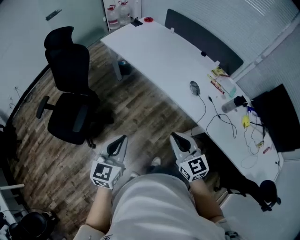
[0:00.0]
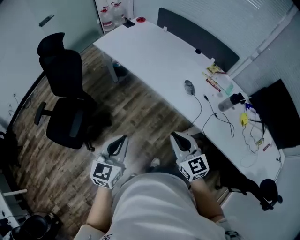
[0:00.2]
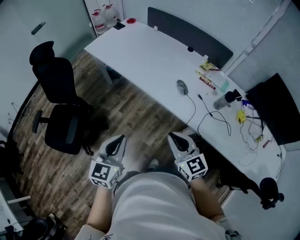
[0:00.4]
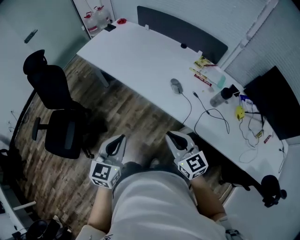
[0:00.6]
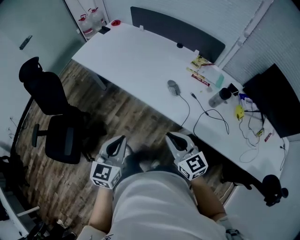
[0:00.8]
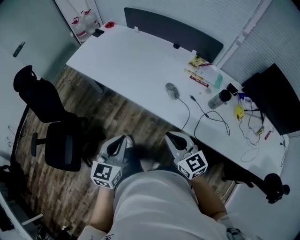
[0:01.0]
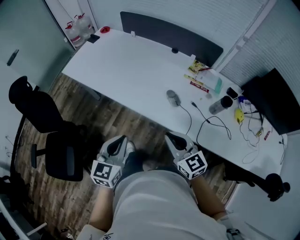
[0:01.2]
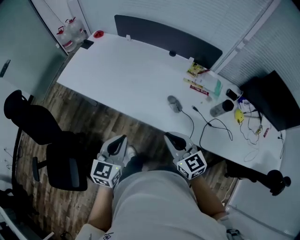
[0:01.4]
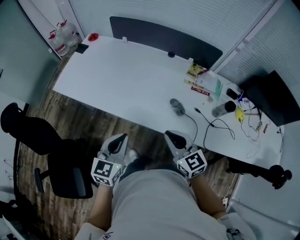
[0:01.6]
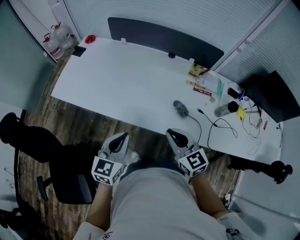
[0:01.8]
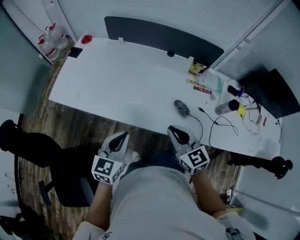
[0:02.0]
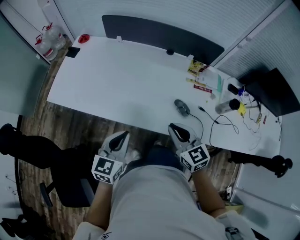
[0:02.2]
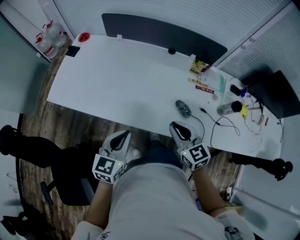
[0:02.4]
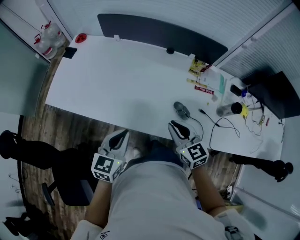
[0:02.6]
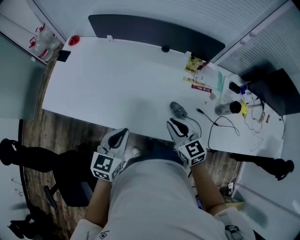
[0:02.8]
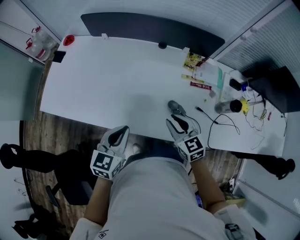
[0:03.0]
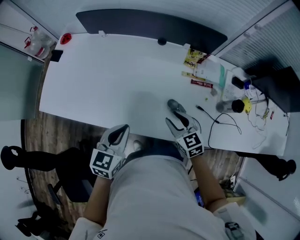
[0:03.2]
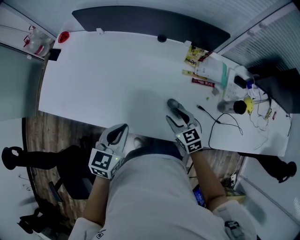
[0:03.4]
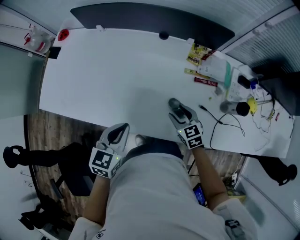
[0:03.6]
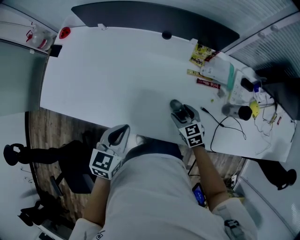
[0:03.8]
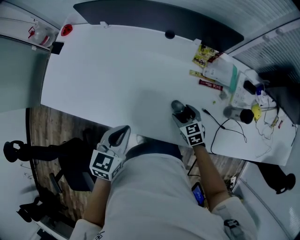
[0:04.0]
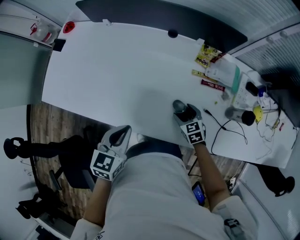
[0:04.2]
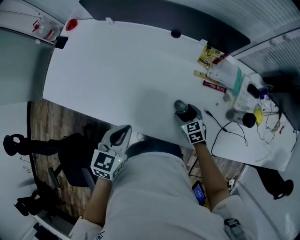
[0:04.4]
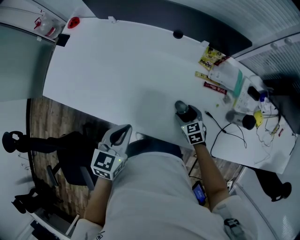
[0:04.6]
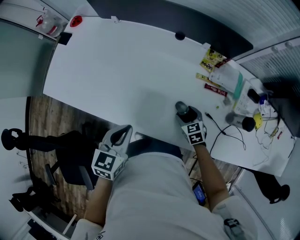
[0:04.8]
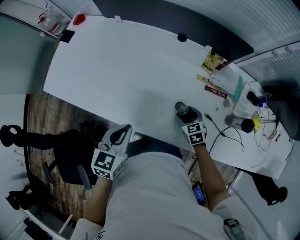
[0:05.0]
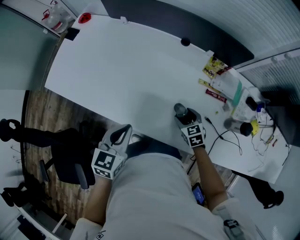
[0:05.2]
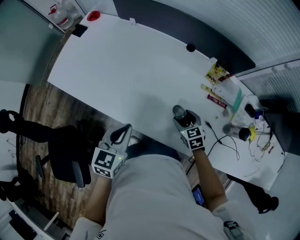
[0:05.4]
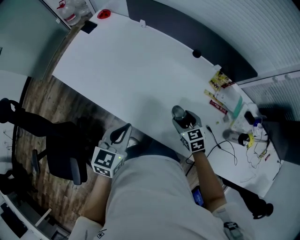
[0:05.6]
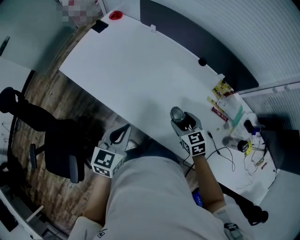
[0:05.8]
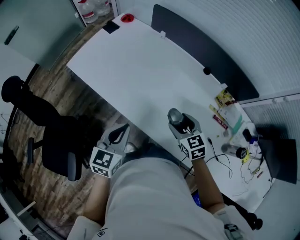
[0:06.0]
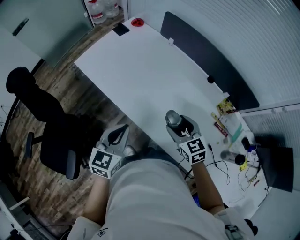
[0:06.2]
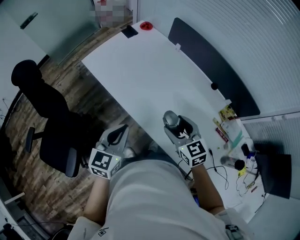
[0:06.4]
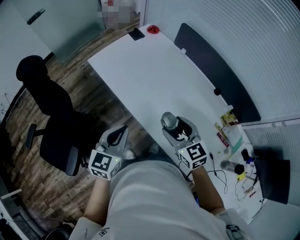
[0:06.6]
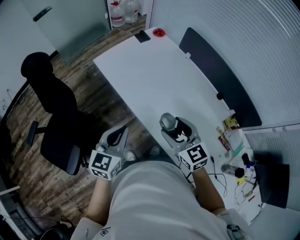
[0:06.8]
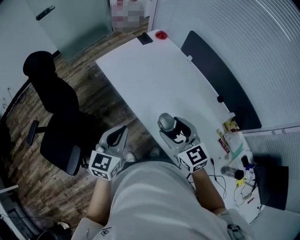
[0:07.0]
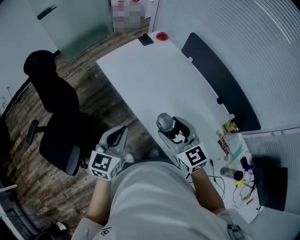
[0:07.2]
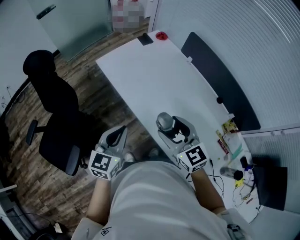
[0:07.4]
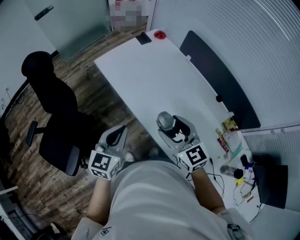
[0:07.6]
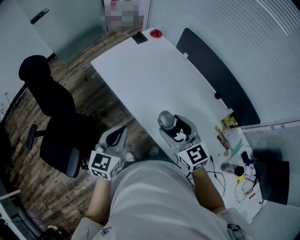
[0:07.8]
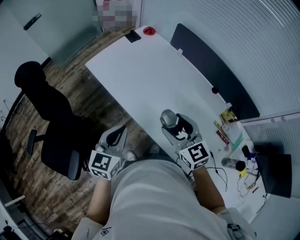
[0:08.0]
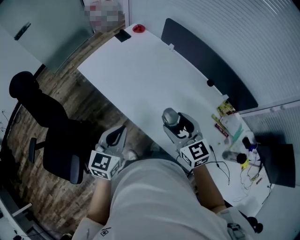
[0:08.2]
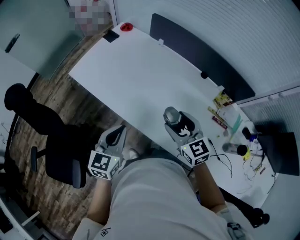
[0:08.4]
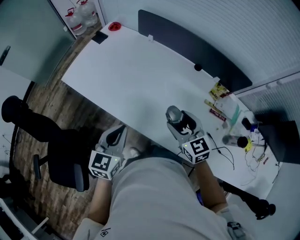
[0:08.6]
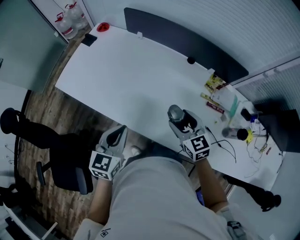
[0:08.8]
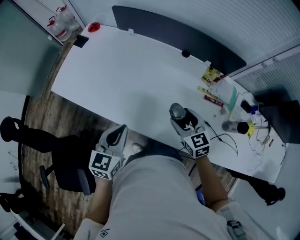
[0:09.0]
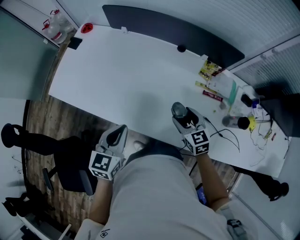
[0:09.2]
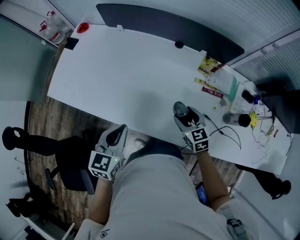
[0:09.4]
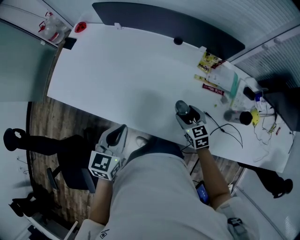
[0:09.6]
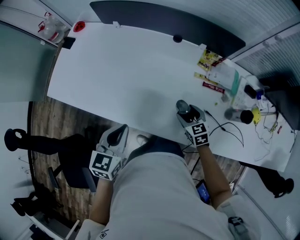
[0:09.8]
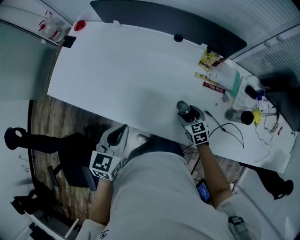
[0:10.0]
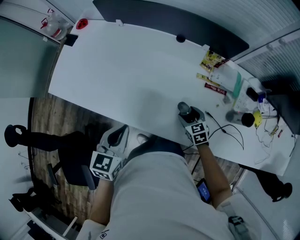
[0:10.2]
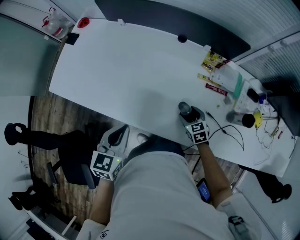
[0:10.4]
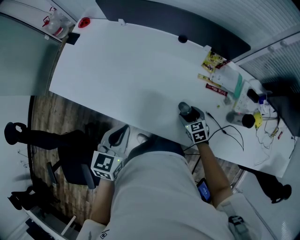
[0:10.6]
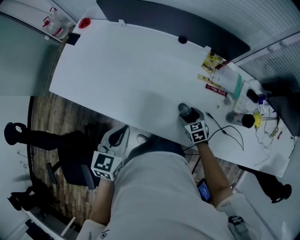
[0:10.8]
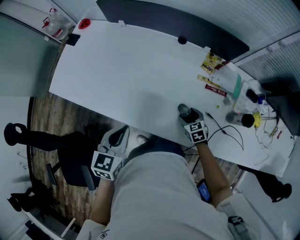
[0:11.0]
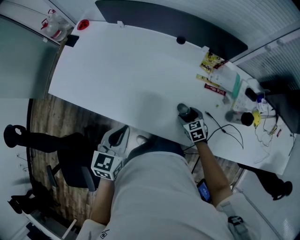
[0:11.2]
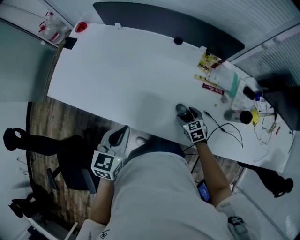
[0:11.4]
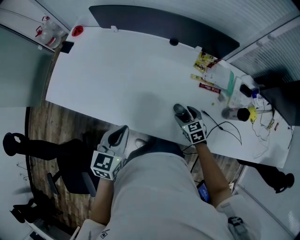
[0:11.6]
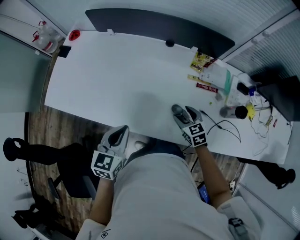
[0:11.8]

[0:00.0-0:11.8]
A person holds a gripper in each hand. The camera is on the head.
0:00.0 to 0:01.4: The grippers both shift forward by roughly 25 cm. The left gripper swivels approximately 20 degrees.
0:01.4 to 0:03.0: The left gripper shifts some 20 cm forward; the right gripper heads forward and downward, covering some 20 cm.
0:03.0 to 0:04.4: The left gripper ends up some 5 cm from where it was, while the right gripper shifts about 20 cm downward, turns by about 20 degrees, and opens its fingers.
0:04.4 to 0:06.0: The left gripper moves to the left and upward, some 15 cm, and rotates approximately 30 degrees, while the right gripper is displaced upward and to the left by some 25 cm, and changes its angle by some 20 degrees.
0:06.0 to 0:07.4: The left gripper goes approximately 15 cm to the left. Meanwhile the right gripper is displaced to the left and upward by roughly 25 cm, and rotates approximately 30 degrees.
0:07.4 to 0:08.8: The right gripper changes place by approximately 25 cm, and swivels approximately 30 degrees; the left gripper shifts by approximately 15 cm, and swivels about 30 degrees.
0:08.8 to 0:10.4: The left gripper moves to the right, about 5 cm. The right gripper goes some 25 cm downward and to the right, and turns by roughly 20 degrees.
0:10.4 to 0:11.8: The right gripper is displaced upward by approximately 5 cm.

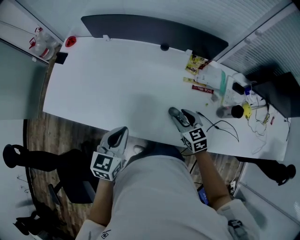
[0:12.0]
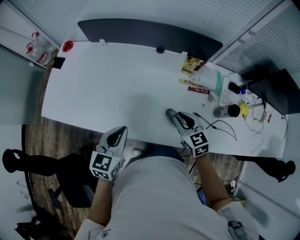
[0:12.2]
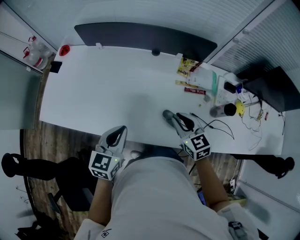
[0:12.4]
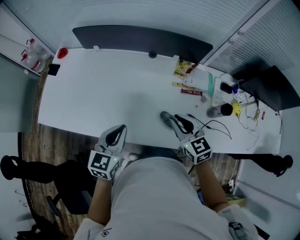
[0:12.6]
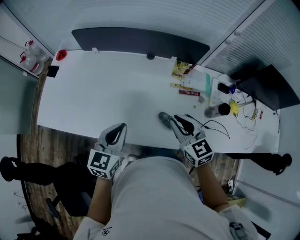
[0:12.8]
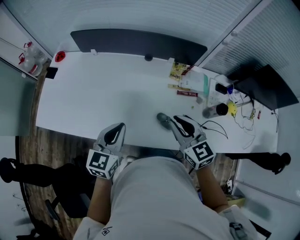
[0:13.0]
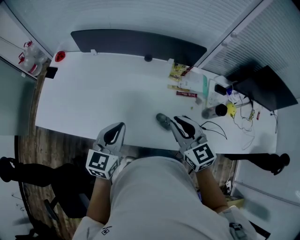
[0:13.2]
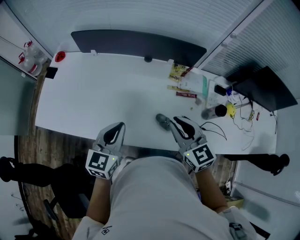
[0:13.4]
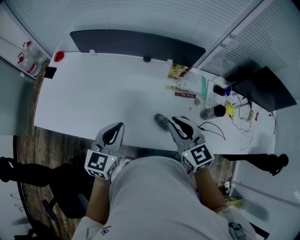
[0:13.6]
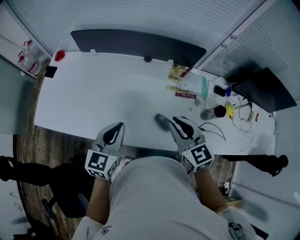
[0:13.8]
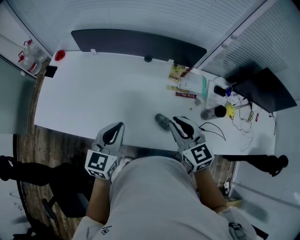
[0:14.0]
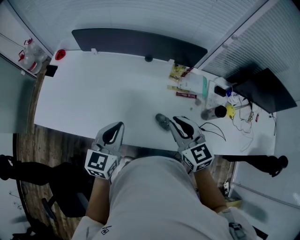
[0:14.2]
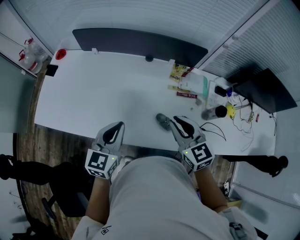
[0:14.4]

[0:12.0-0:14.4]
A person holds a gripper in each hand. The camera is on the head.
0:12.0 to 0:13.2: The right gripper is displaced upward by about 20 cm, and closes up; the left gripper travels upward by some 5 cm.
0:13.2 to 0:14.4: The two grippers keep their place.

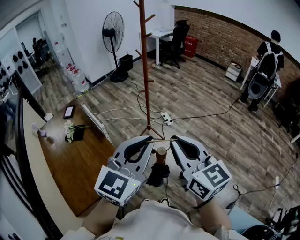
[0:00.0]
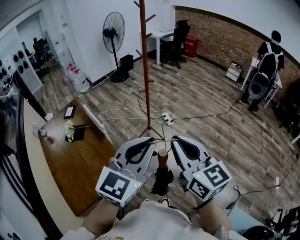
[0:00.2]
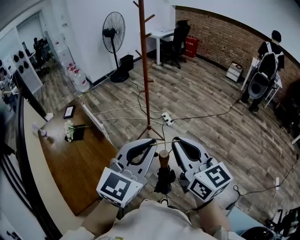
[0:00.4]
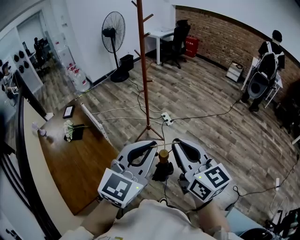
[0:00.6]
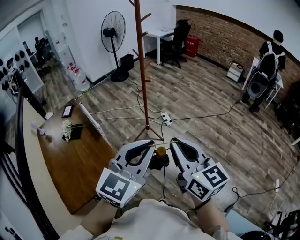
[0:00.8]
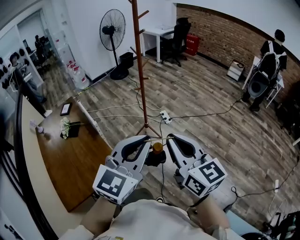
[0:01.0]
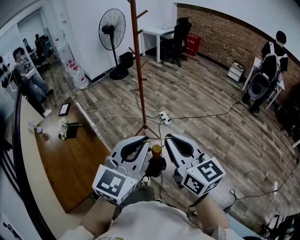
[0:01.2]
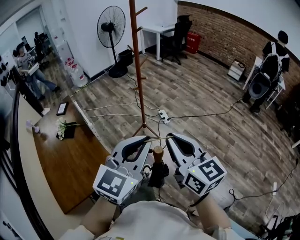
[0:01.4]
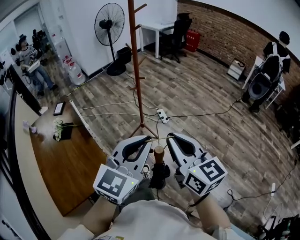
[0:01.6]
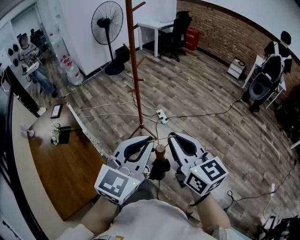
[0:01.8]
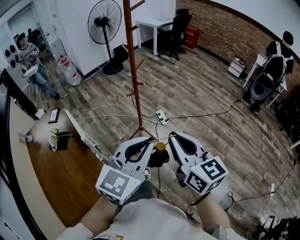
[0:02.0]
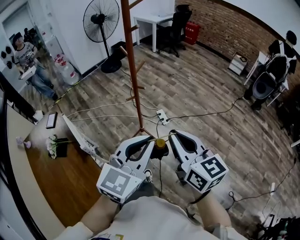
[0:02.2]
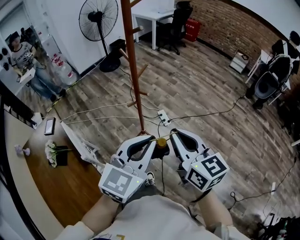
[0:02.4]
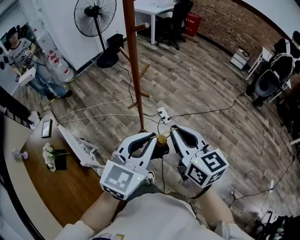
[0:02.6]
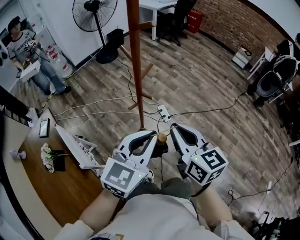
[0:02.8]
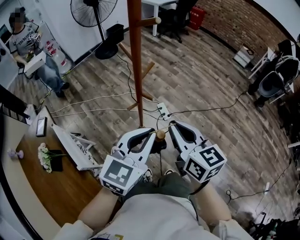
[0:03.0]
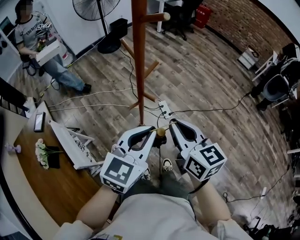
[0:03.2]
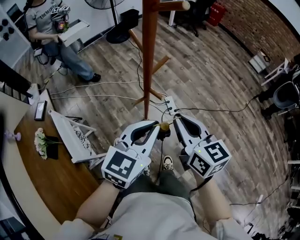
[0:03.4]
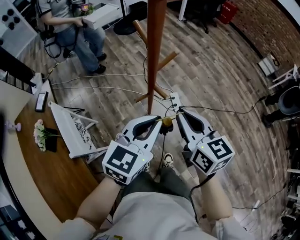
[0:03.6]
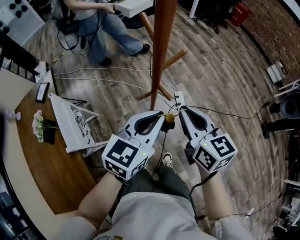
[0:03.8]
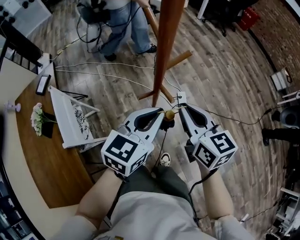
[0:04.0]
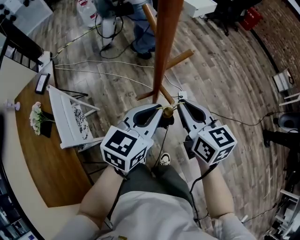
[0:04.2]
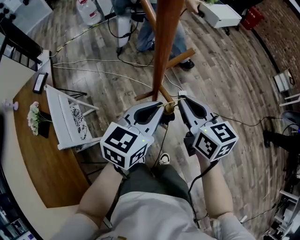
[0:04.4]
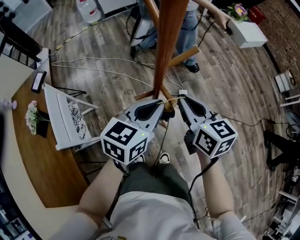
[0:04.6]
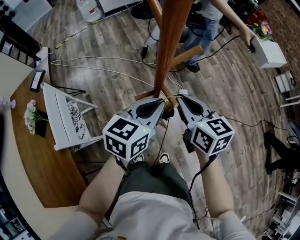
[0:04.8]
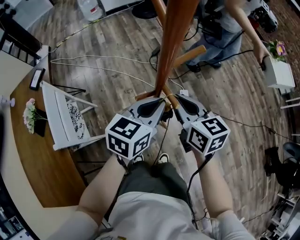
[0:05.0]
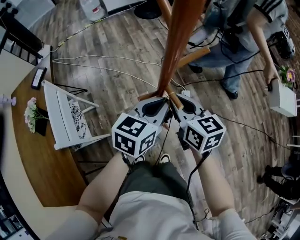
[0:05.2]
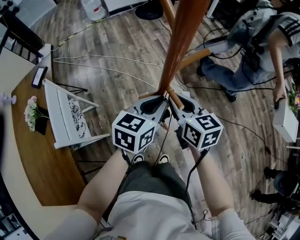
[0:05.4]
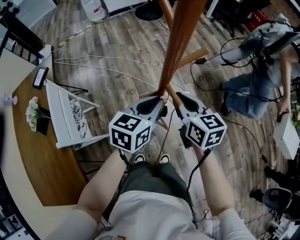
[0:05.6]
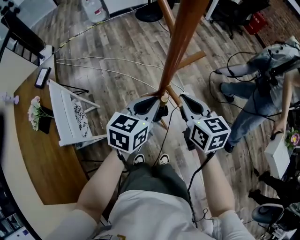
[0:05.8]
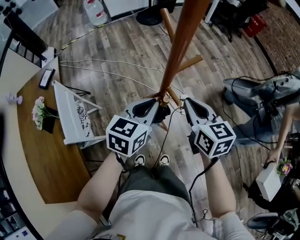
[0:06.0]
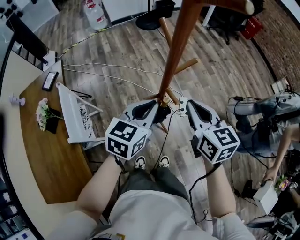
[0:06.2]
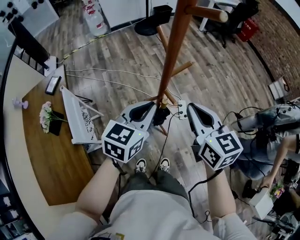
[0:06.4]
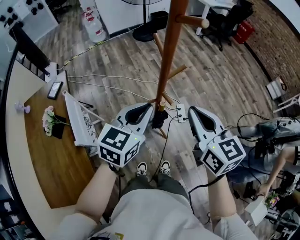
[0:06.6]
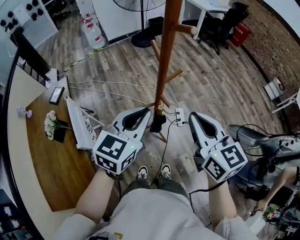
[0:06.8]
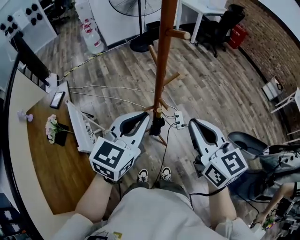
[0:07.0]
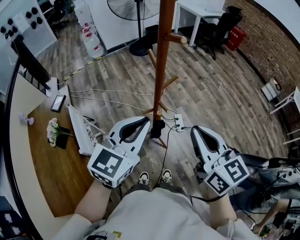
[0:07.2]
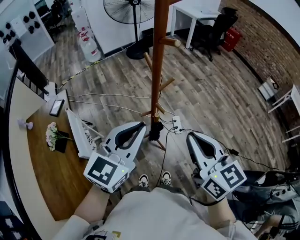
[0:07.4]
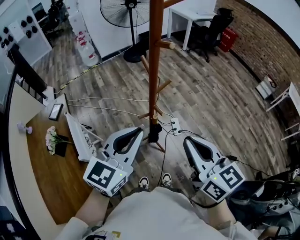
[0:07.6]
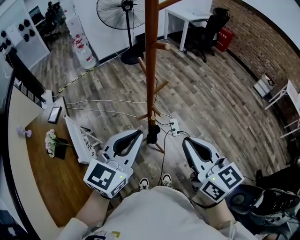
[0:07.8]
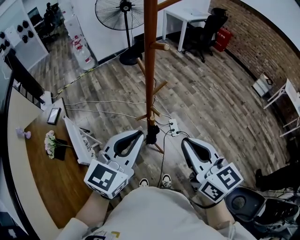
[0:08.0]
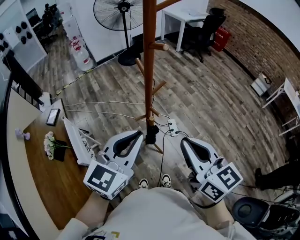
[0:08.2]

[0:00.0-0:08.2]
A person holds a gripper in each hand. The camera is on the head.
0:00.0 to 0:01.6: The grippers both shift forward, to the right and downward by about 15 cm.
0:01.6 to 0:03.2: The two grippers travel together, forward, about 40 cm.
0:03.2 to 0:05.0: The two grippers go about 25 cm downward and forward. The left gripper changes its angle by about 30 degrees; the right gripper changes its angle by some 20 degrees.
0:05.0 to 0:06.6: Both grippers move upward and backward, roughly 20 cm.
0:06.6 to 0:08.2: The left gripper goes roughly 15 cm upward and backward. The right gripper heads backward and upward, covering some 15 cm.

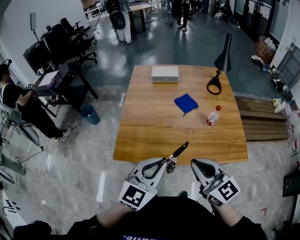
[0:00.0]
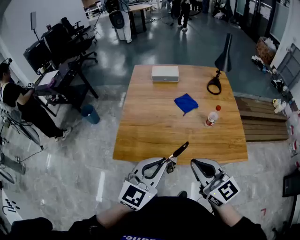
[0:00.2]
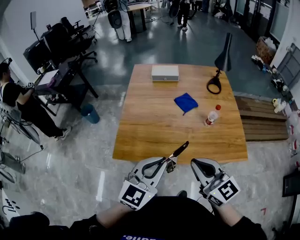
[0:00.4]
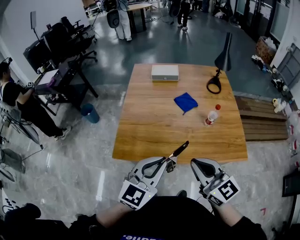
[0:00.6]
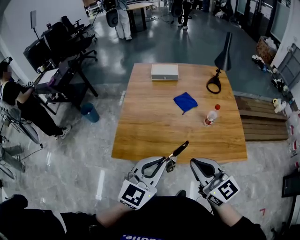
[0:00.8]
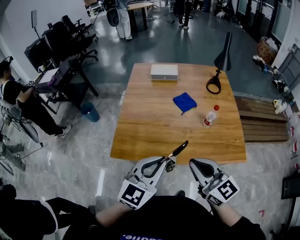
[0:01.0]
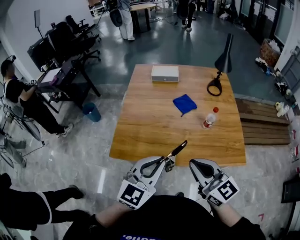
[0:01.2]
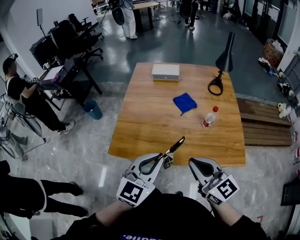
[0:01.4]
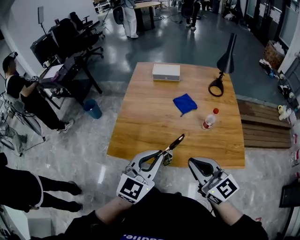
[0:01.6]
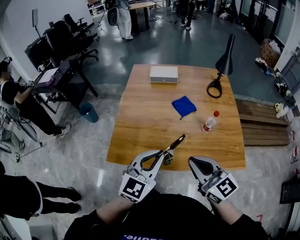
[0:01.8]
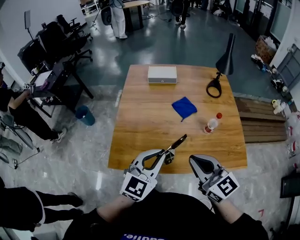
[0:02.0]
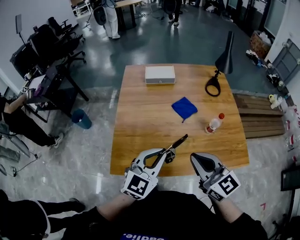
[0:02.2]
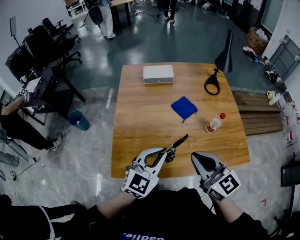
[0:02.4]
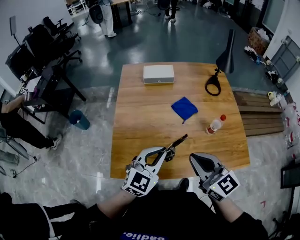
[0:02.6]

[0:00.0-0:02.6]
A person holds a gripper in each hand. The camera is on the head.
0:00.0 to 0:01.2: The grippers make only small movements.
0:01.2 to 0:02.6: The left gripper is displaced forward and downward by approximately 20 cm. The right gripper is displaced forward and to the left by roughly 15 cm.
